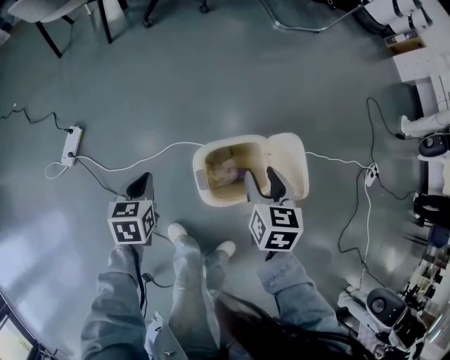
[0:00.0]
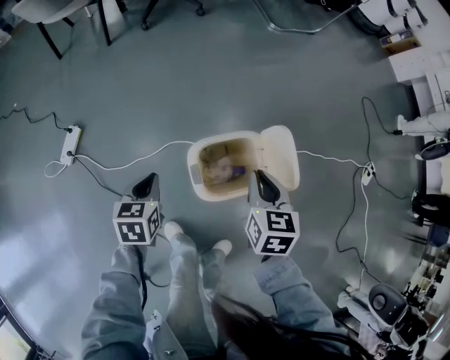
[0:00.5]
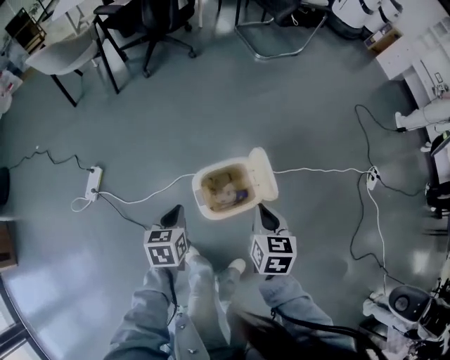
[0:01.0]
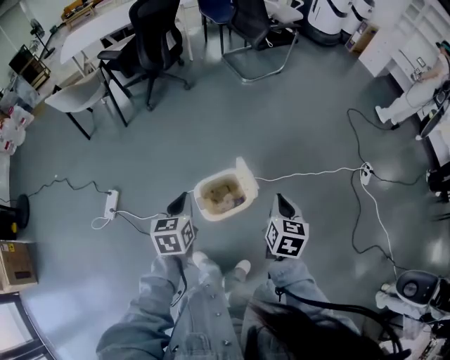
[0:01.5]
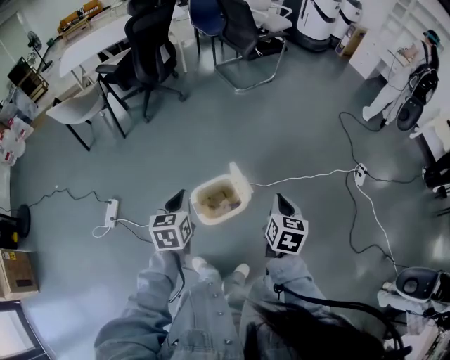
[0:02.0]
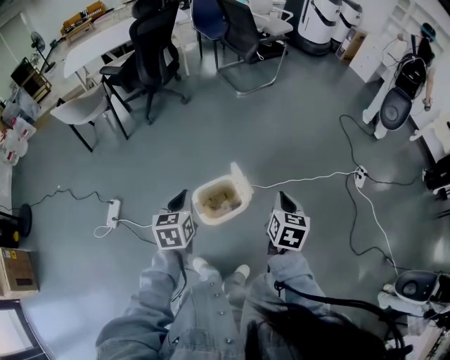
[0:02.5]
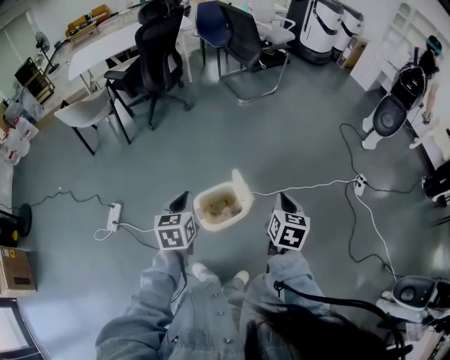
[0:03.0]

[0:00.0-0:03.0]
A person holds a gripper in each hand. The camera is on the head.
0:00.0 to 0:01.5: The right gripper heads upward, to the right and backward, covering some 30 cm, and closes. The left gripper is displaced upward and to the right by about 35 cm.
0:01.5 to 0:03.0: Both grippers travel together upward, approximately 5 cm.

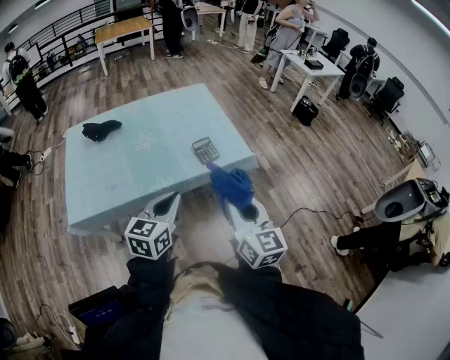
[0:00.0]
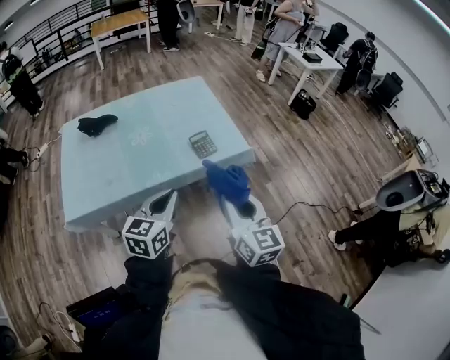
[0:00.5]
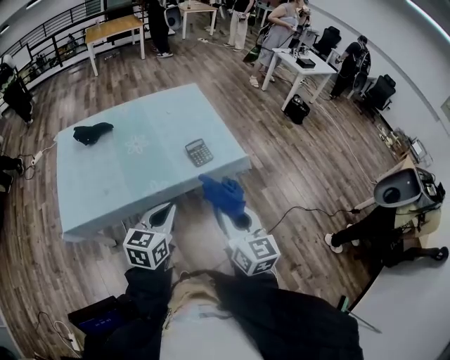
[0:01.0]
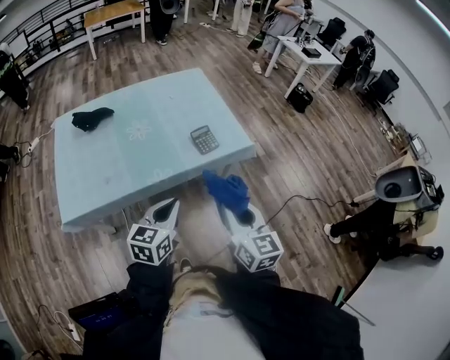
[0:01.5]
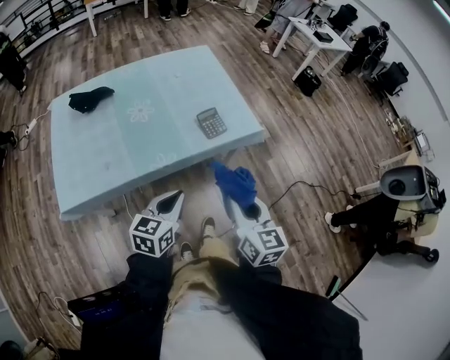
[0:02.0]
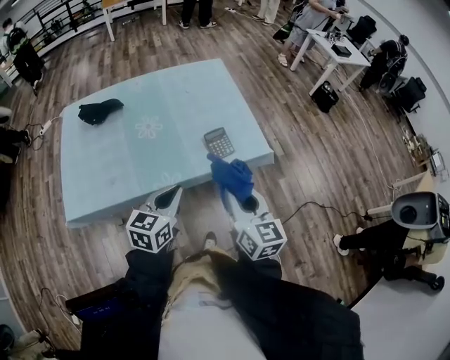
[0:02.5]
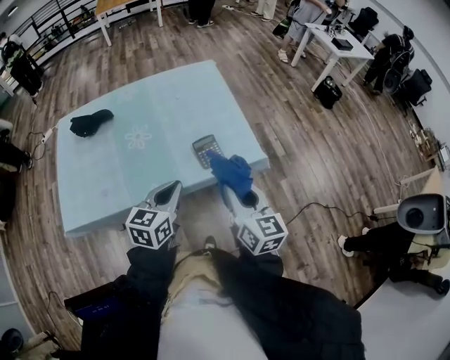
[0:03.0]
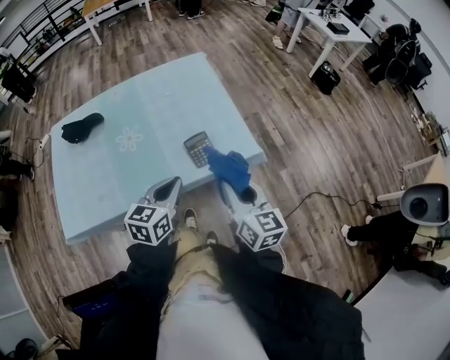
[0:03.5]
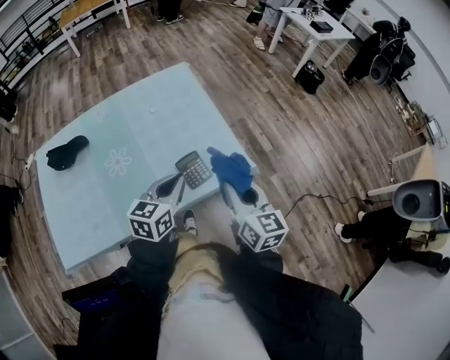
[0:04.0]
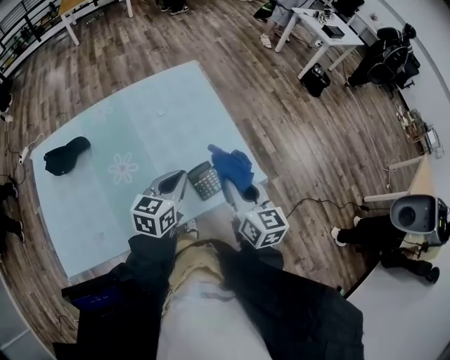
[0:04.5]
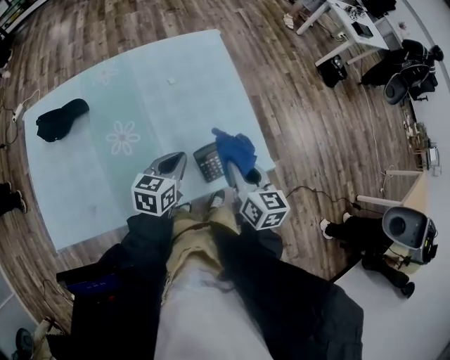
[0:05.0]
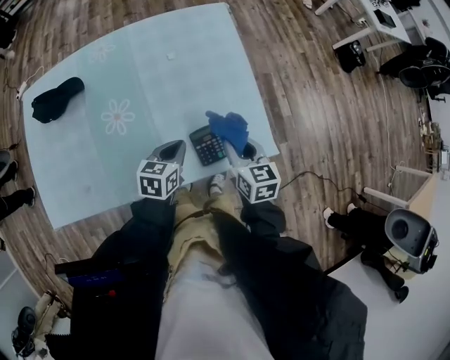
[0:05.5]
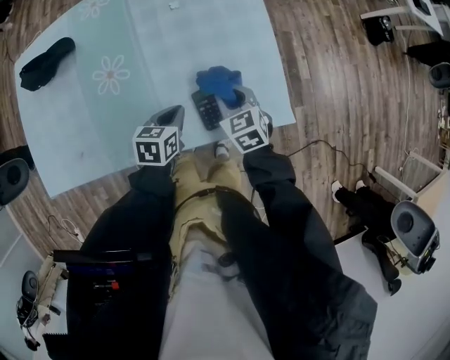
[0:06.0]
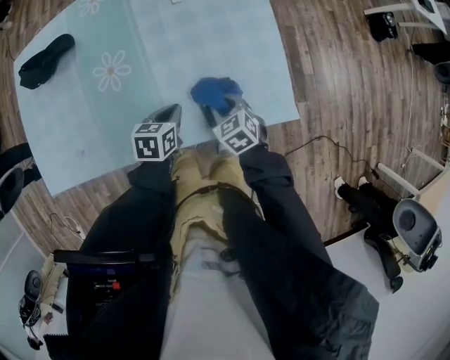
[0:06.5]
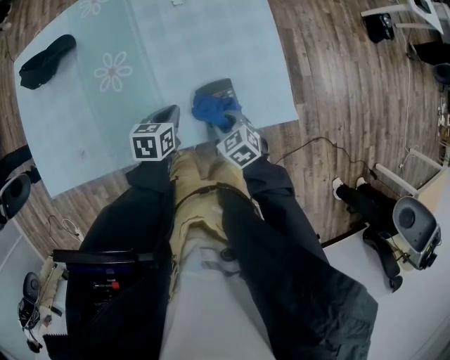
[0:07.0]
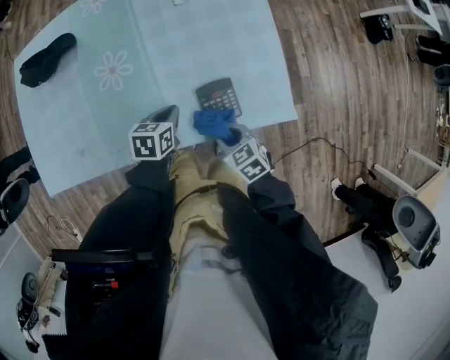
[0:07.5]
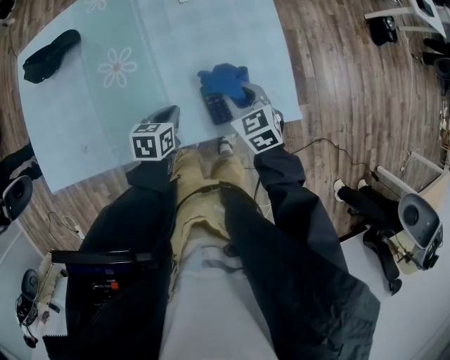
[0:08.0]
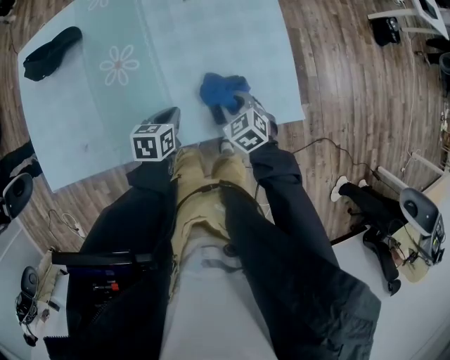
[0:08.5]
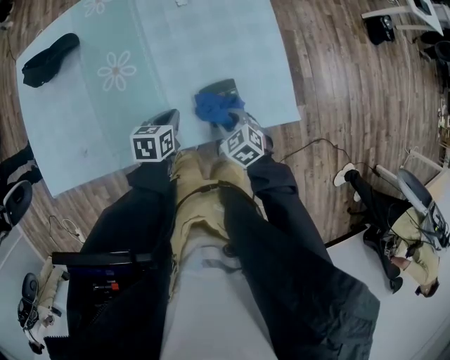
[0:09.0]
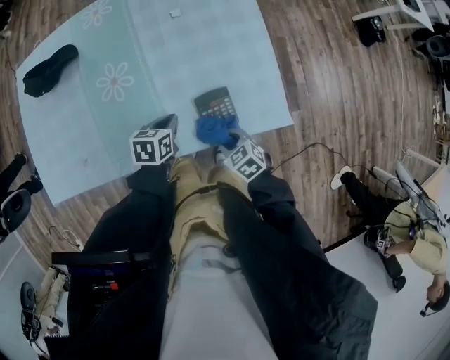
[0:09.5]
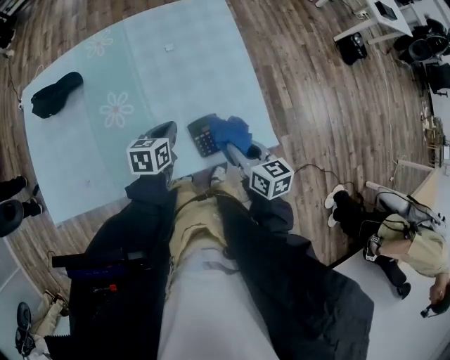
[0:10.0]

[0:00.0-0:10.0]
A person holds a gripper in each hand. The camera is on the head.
0:00.0 to 0:02.0: Both grippers travel together downward, roughly 10 cm.
0:02.0 to 0:04.0: The grippers both shift forward by some 30 cm.
0:04.0 to 0:06.0: The left gripper travels downward by roughly 25 cm, and rotates approximately 30 degrees, while the right gripper shifts about 35 cm downward, forward and to the left, and points its fingers approximately 30 degrees further downward.
0:06.0 to 0:08.0: The right gripper goes backward and returns, about 15 cm each way. Meanwhile the left gripper ends up about 5 cm from where it was.
0:08.0 to 0:10.0: The left gripper moves upward and forward, some 10 cm, while the right gripper shifts roughly 10 cm upward, backward and to the right, and changes its angle by some 40 degrees.

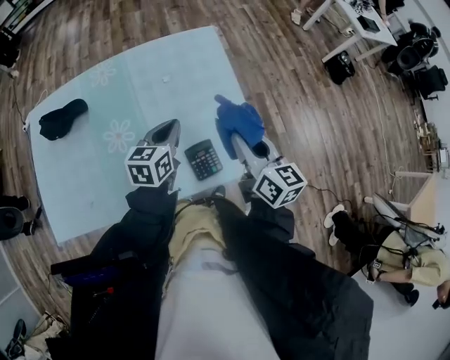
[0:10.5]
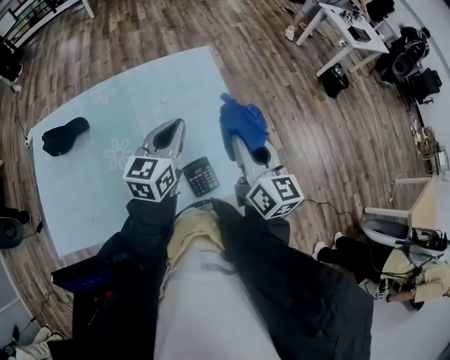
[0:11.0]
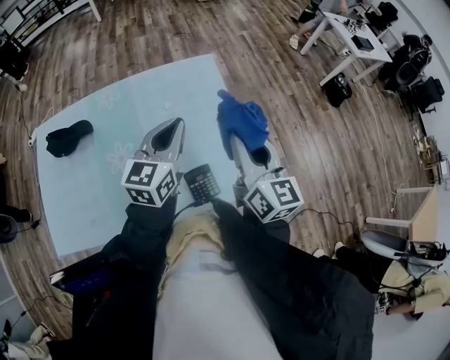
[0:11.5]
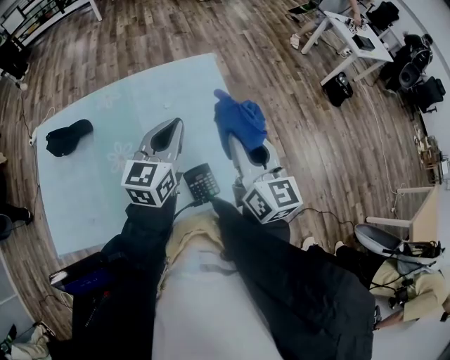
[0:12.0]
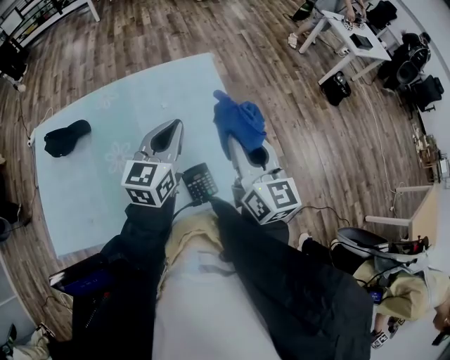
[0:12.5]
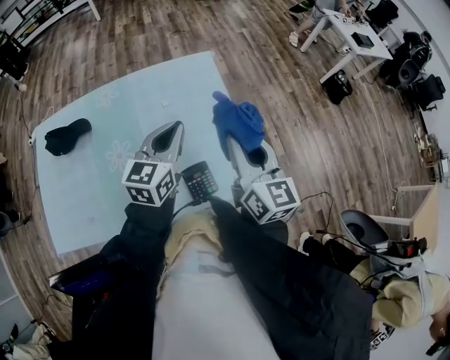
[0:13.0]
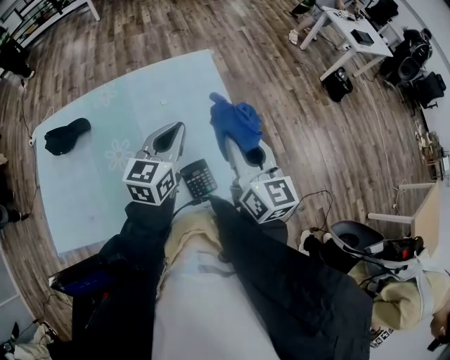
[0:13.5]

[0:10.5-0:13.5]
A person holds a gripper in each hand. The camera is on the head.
0:10.5 to 0:12.0: Both grippers travel together upward, about 10 cm. The left gripper turns by roughly 20 degrees.
0:12.0 to 0:13.5: The grippers make only small movements.

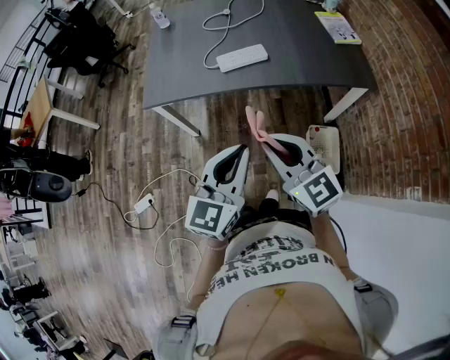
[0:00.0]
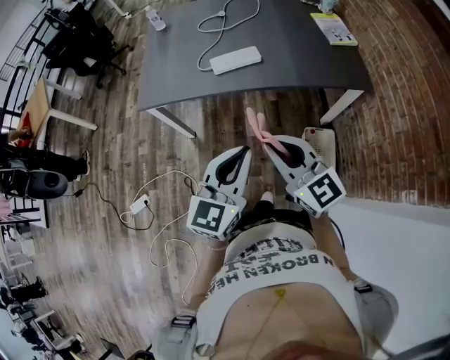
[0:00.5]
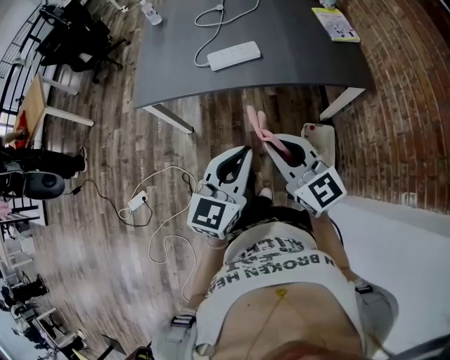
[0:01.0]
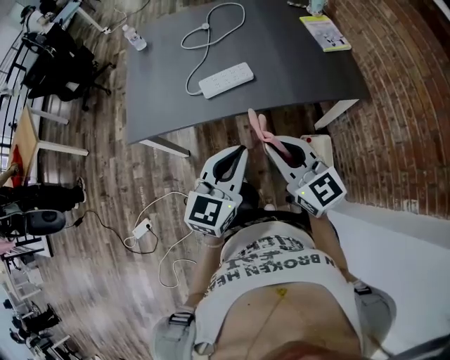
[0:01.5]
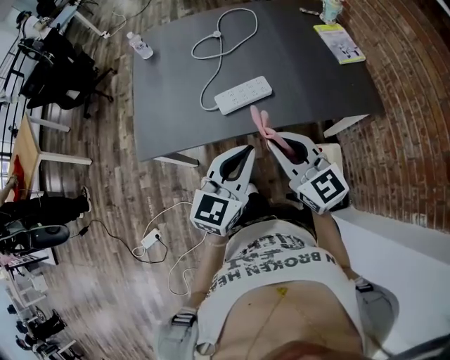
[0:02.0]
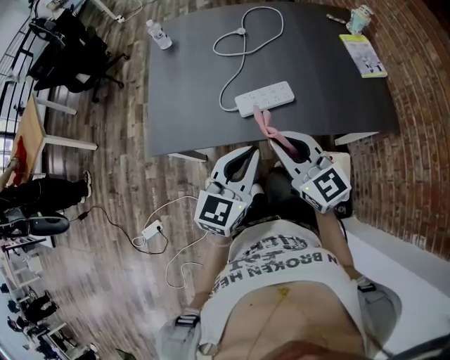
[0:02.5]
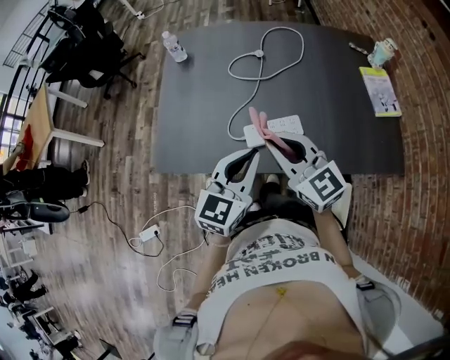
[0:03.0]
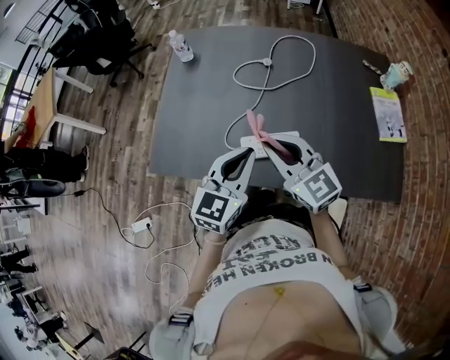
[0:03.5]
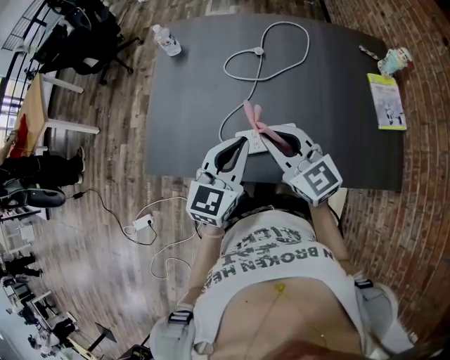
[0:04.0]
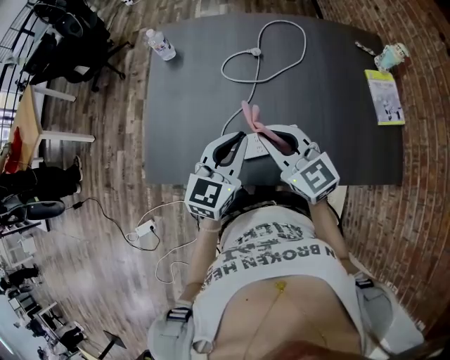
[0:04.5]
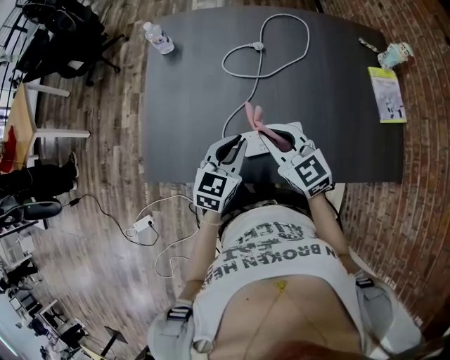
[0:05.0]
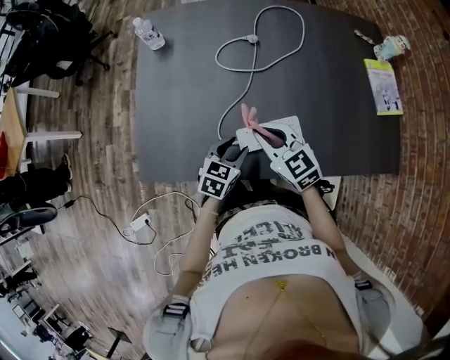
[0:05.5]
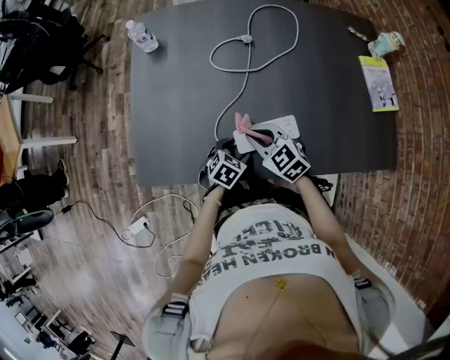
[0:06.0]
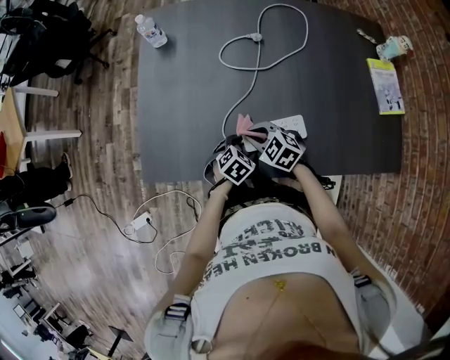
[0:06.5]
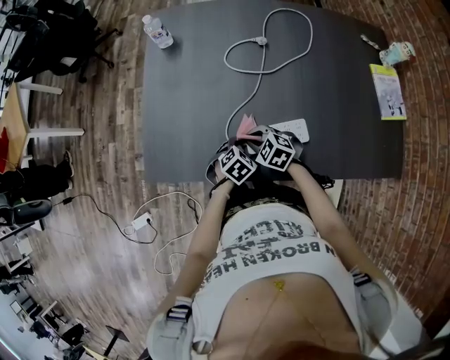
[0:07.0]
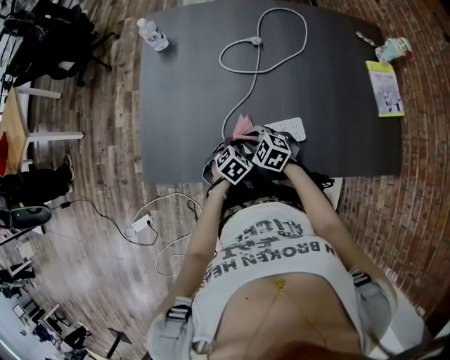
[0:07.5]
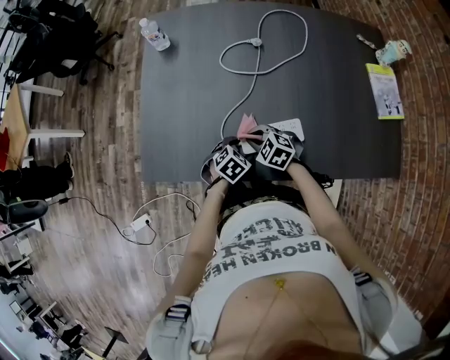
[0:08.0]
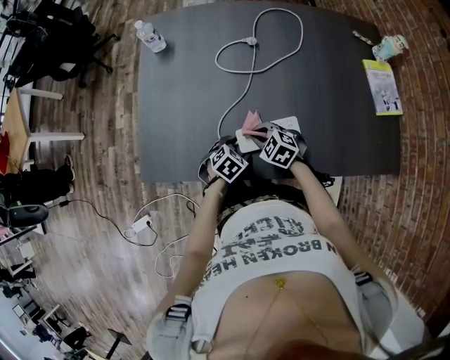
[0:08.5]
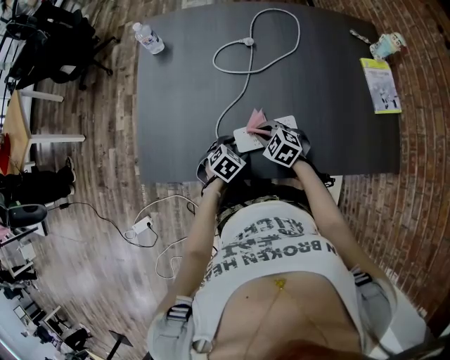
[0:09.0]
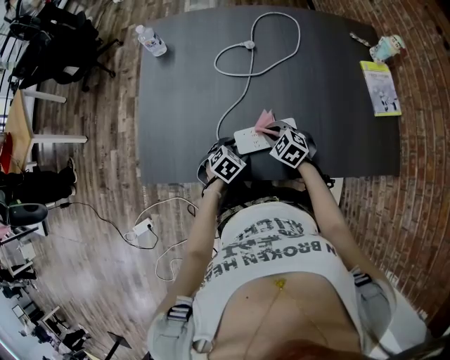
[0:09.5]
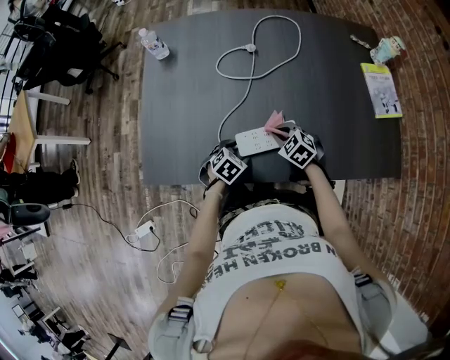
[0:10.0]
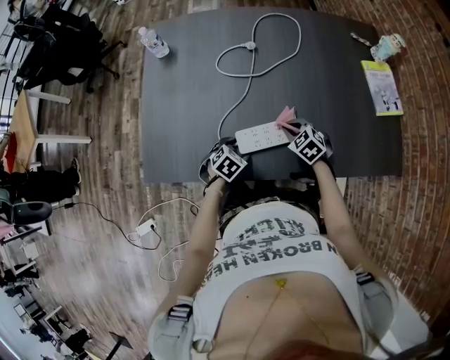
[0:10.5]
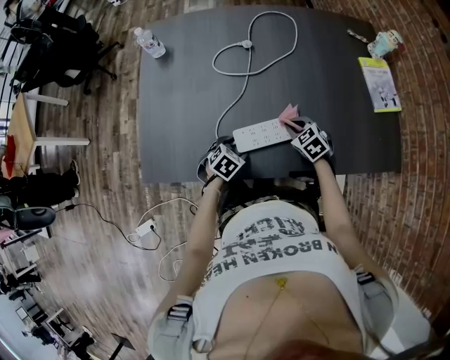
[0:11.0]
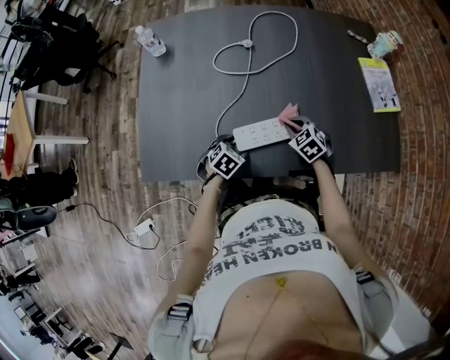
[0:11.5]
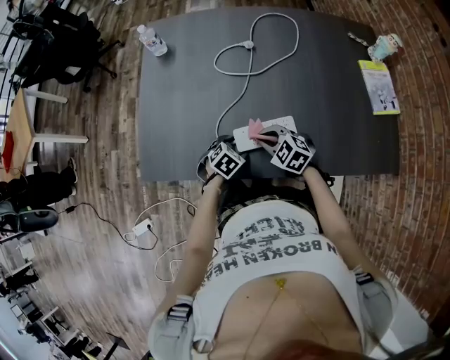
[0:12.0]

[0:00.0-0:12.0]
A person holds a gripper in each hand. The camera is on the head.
0:00.0 to 0:02.0: The grippers both shift forward by roughly 20 cm.
0:02.0 to 0:04.0: The two grippers go some 25 cm forward.
0:04.0 to 0:06.0: The right gripper moves downward, some 20 cm, and rotates about 30 degrees; the left gripper moves downward, roughly 30 cm, tips its fingers downward by roughly 40 degrees, and opens.
0:06.0 to 0:08.0: The right gripper is displaced downward by about 10 cm, and changes its angle by about 20 degrees.
0:08.0 to 0:10.0: The right gripper ends up some 10 cm from where it was.
0:10.0 to 0:12.0: The right gripper changes place by roughly 10 cm.
